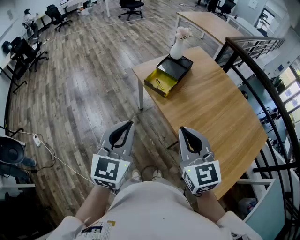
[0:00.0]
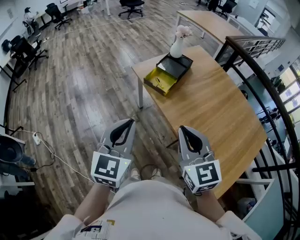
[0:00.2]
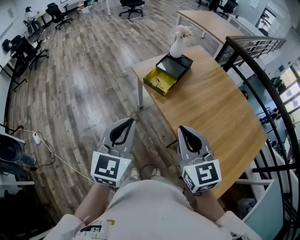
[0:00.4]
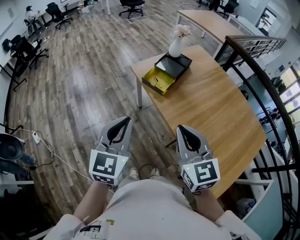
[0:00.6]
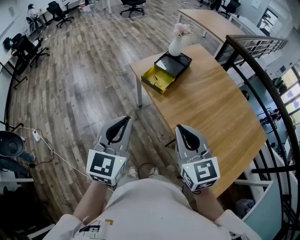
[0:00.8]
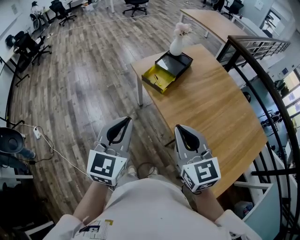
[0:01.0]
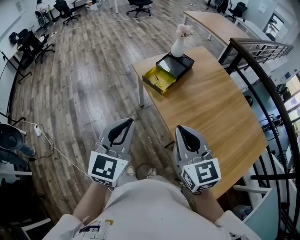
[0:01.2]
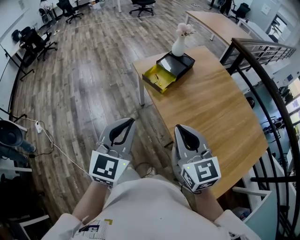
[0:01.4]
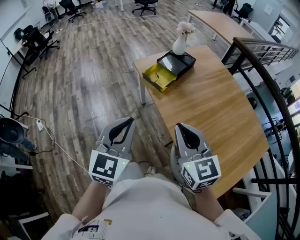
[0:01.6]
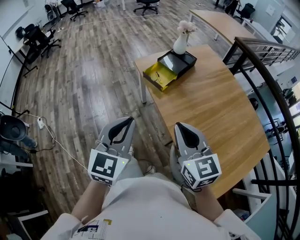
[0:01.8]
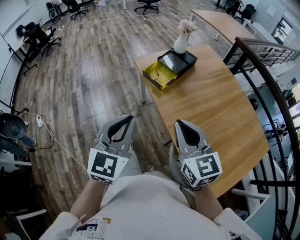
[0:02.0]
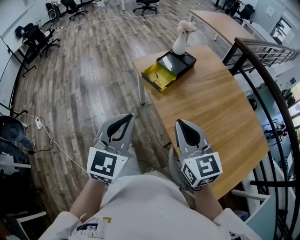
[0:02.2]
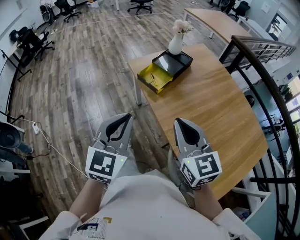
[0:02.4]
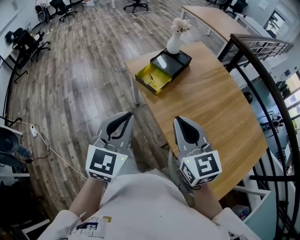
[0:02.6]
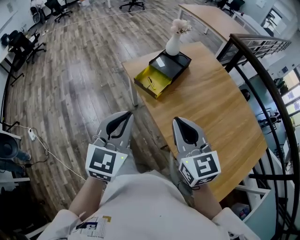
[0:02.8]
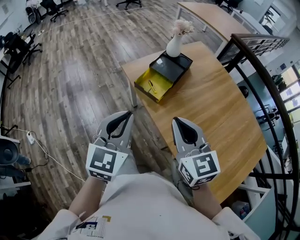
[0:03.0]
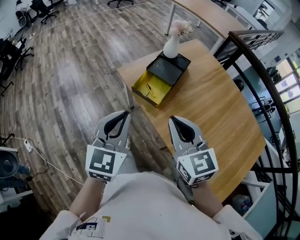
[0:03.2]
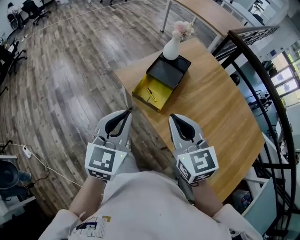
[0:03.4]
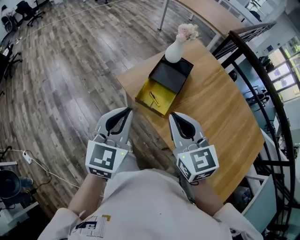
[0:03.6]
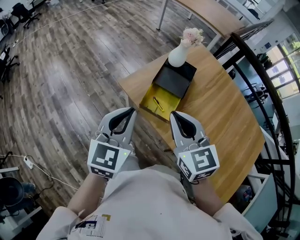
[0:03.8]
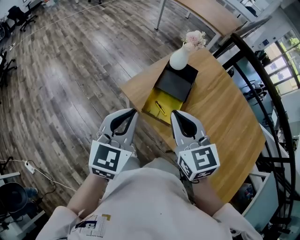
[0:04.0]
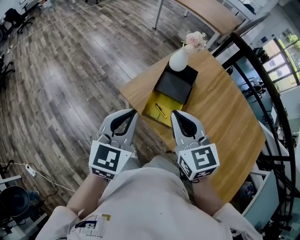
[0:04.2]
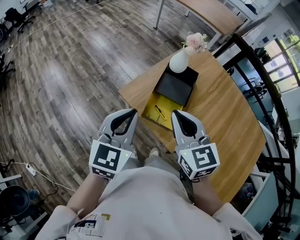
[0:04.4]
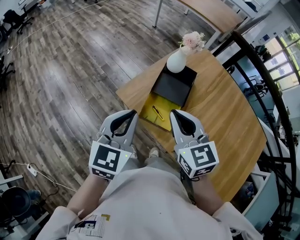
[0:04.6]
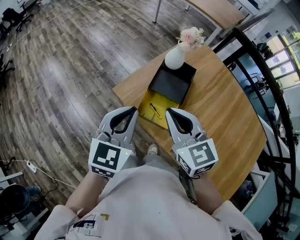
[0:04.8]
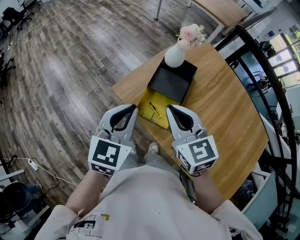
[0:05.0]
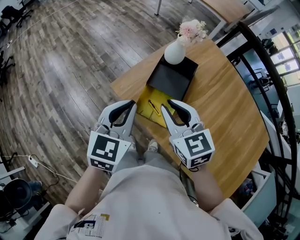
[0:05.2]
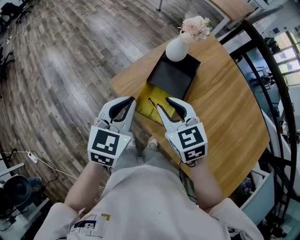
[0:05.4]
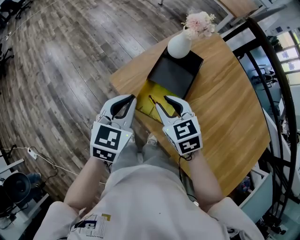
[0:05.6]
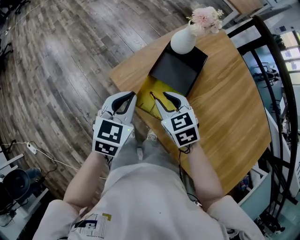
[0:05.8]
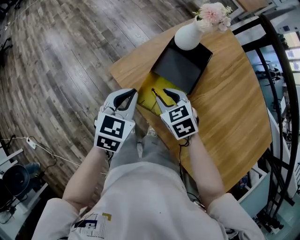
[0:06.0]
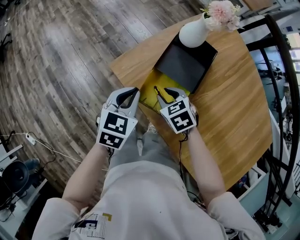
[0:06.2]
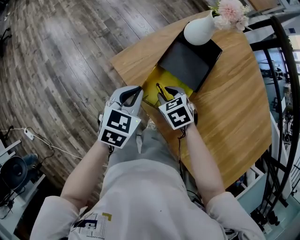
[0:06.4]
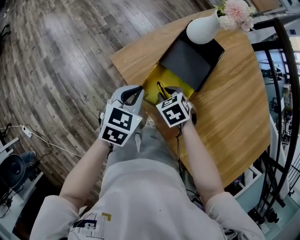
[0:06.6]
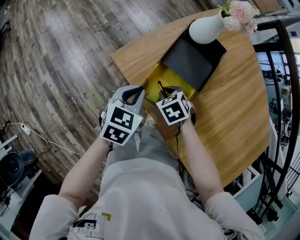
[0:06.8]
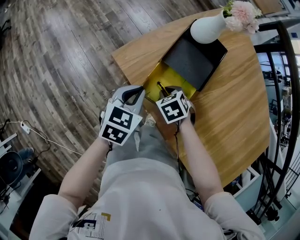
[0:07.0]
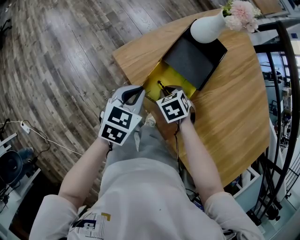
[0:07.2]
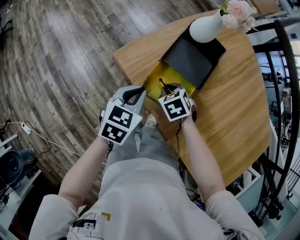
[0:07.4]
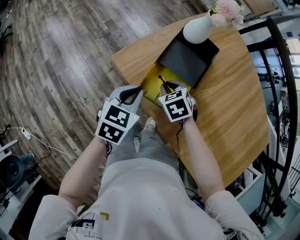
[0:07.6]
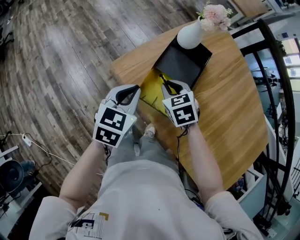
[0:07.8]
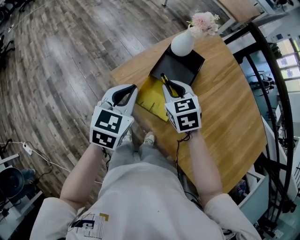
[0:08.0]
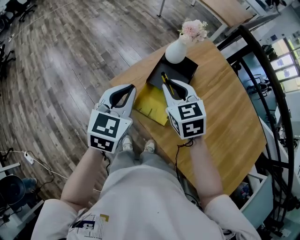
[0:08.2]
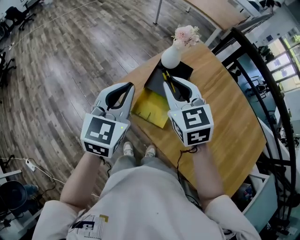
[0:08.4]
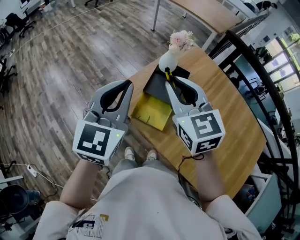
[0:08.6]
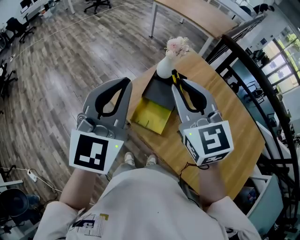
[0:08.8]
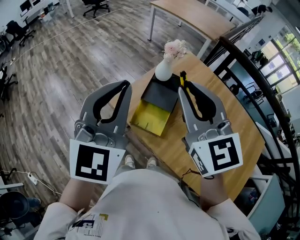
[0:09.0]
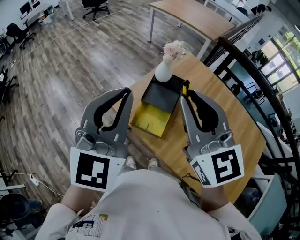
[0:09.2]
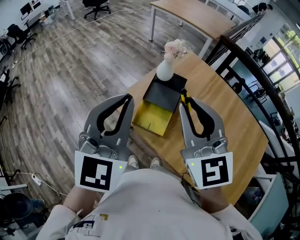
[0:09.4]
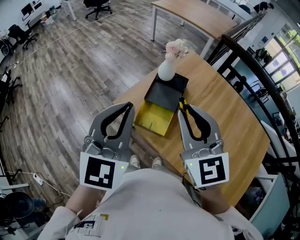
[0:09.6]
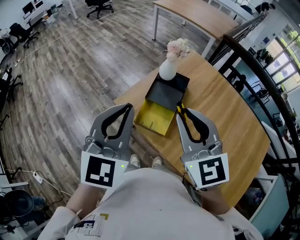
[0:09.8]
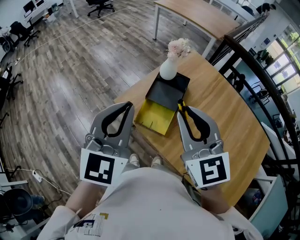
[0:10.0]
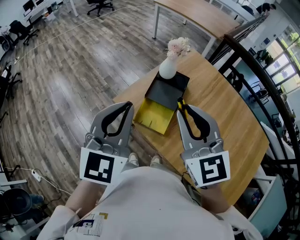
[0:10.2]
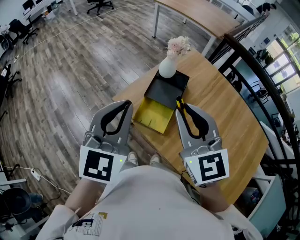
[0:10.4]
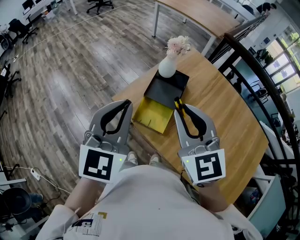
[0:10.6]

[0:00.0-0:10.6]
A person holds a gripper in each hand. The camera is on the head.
0:00.0 to 0:01.6: Both grippers travel together to the right, about 10 cm.
0:01.6 to 0:03.0: The grippers both shift forward by about 15 cm.
0:03.0 to 0:04.6: The grippers both shift forward and to the left by some 30 cm.
0:04.6 to 0:06.0: The left gripper travels downward and forward by roughly 20 cm; the right gripper travels downward by about 25 cm, tips its fingers downward by about 30 degrees, and opens up.
0:06.0 to 0:07.6: The right gripper goes roughly 5 cm downward.
0:07.6 to 0:09.0: The grippers both shift upward by approximately 40 cm. The left gripper tilts its fingers about 40 degrees upward; the right gripper points its fingers about 60 degrees further upward.
0:09.0 to 0:10.6: Both grippers travel together downward, some 5 cm.

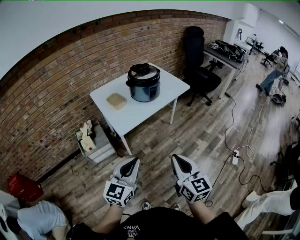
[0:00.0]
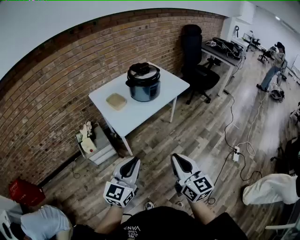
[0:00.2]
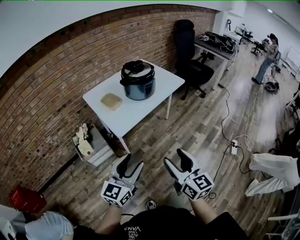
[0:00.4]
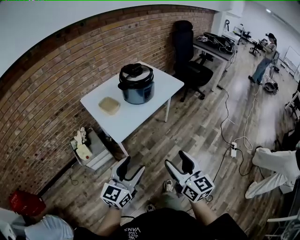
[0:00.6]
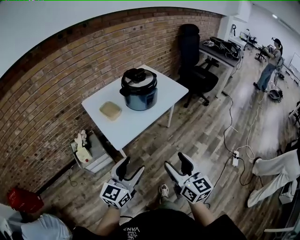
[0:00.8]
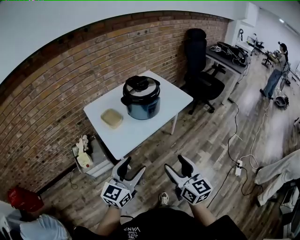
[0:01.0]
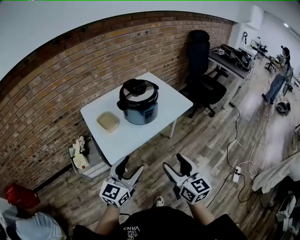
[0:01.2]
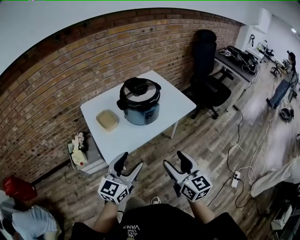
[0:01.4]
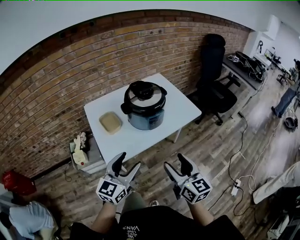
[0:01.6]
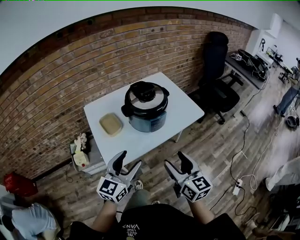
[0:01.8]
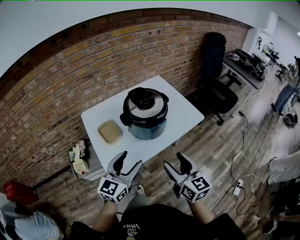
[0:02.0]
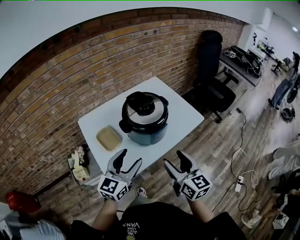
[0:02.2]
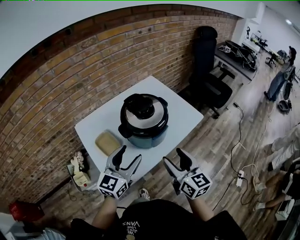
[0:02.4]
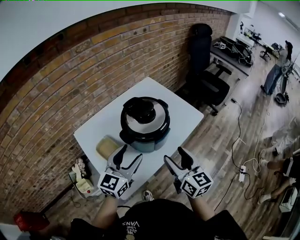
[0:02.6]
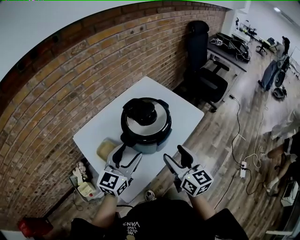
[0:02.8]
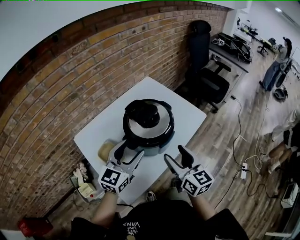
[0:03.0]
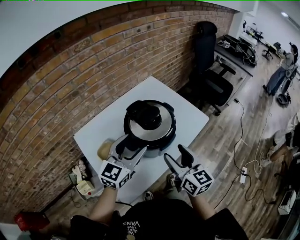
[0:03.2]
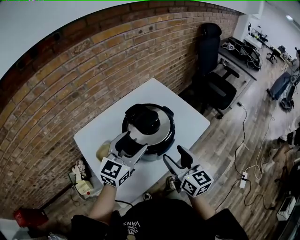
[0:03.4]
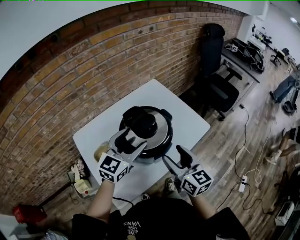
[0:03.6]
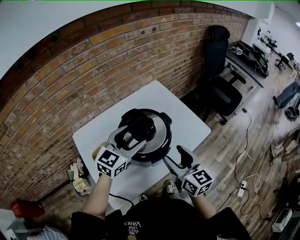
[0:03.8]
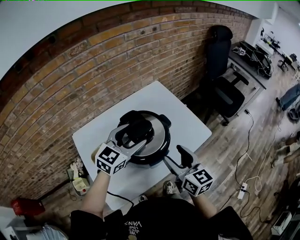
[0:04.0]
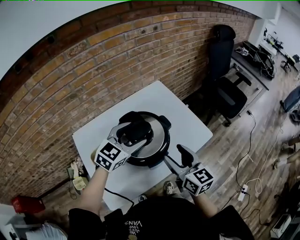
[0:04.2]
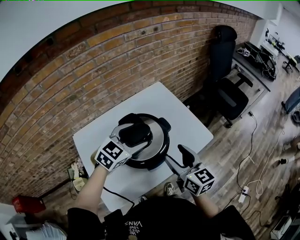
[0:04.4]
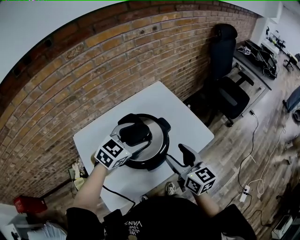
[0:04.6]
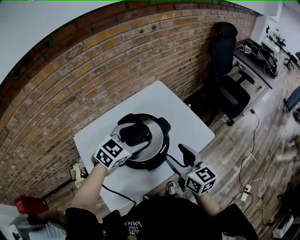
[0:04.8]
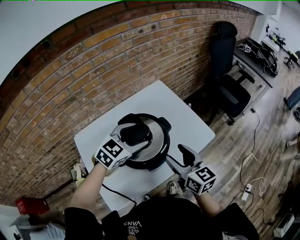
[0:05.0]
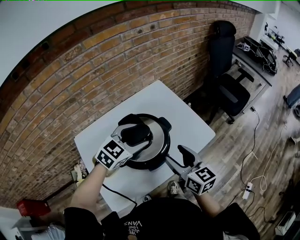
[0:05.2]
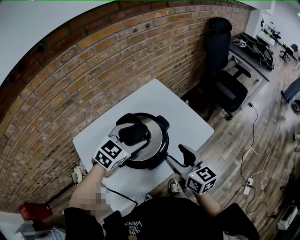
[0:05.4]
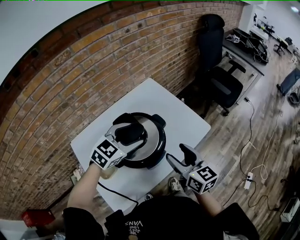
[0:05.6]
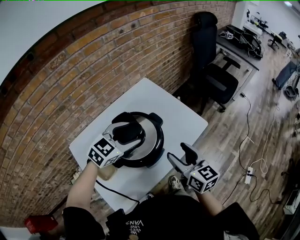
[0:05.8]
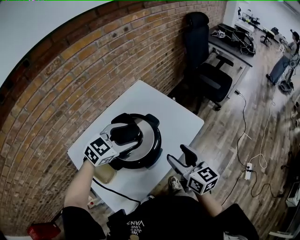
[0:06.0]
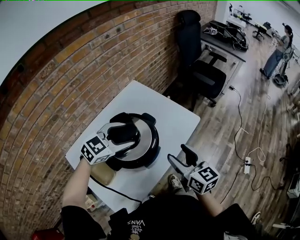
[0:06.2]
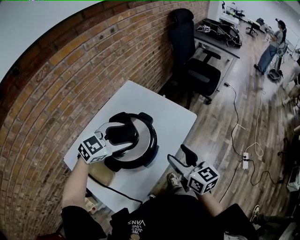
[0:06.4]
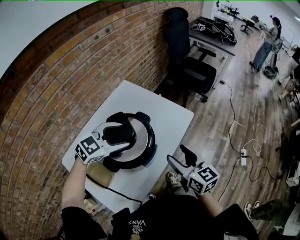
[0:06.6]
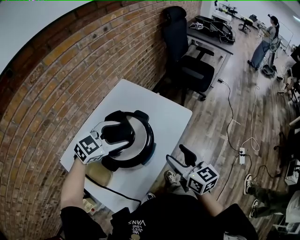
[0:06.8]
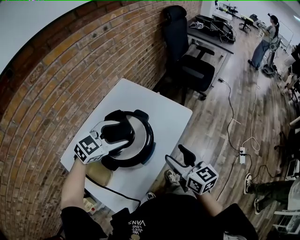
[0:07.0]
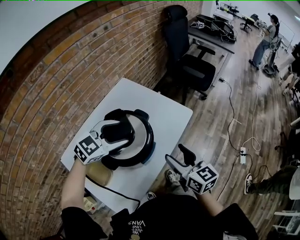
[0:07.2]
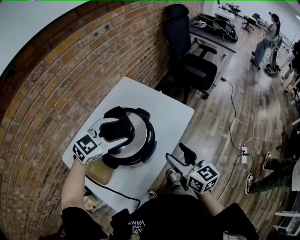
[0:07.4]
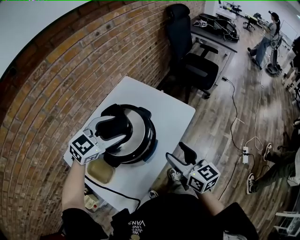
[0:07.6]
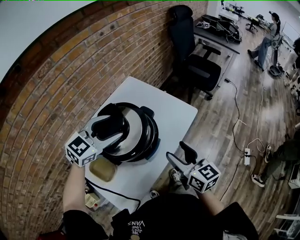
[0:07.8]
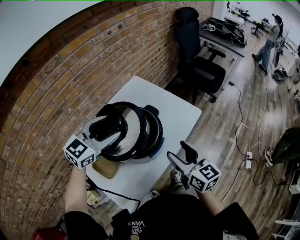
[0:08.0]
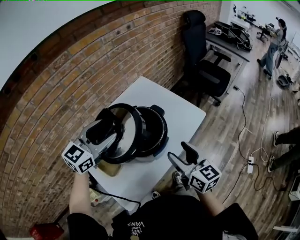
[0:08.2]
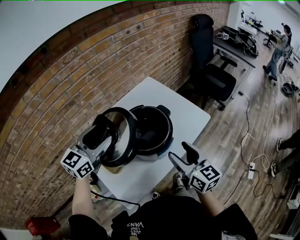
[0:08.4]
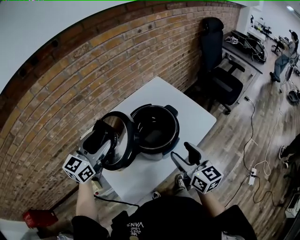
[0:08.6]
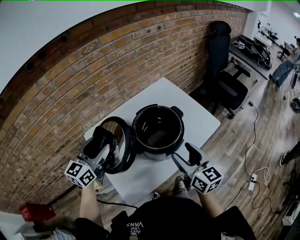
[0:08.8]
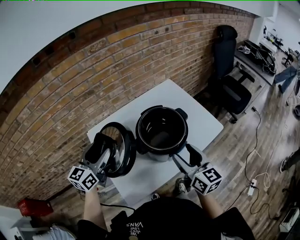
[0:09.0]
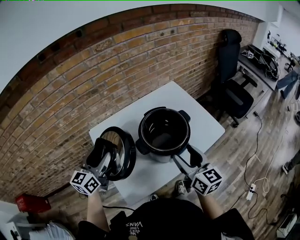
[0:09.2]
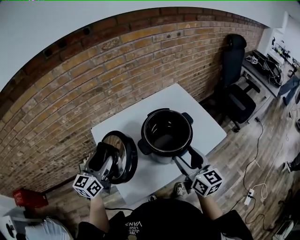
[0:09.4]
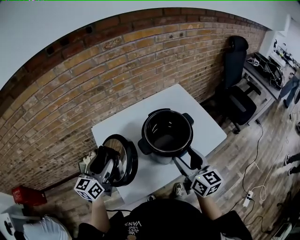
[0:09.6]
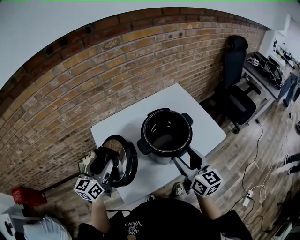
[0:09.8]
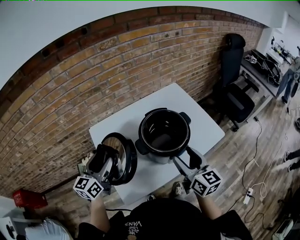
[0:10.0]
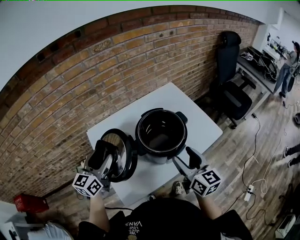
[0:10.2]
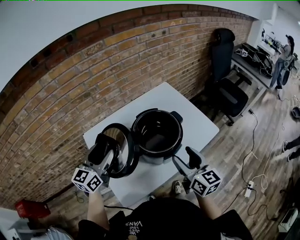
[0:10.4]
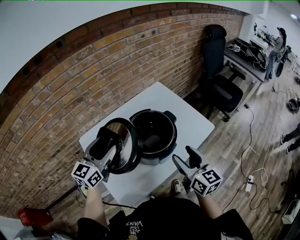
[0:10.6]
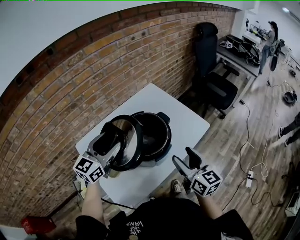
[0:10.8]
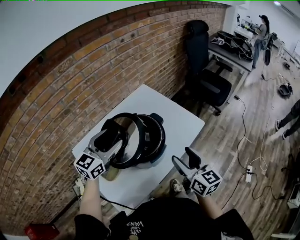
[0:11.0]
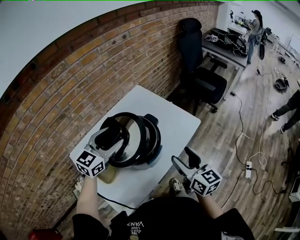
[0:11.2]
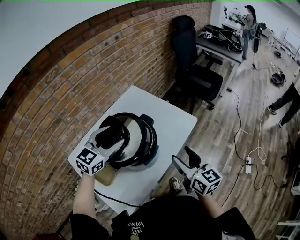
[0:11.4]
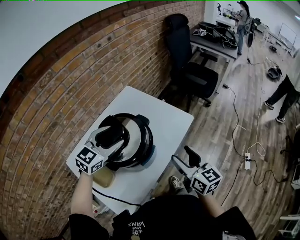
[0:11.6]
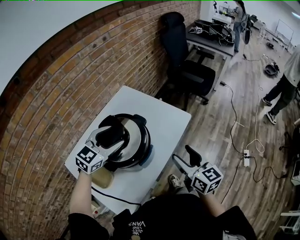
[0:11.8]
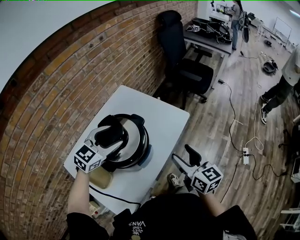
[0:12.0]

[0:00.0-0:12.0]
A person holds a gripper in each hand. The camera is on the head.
0:00.0 to 0:01.6: Both grippers travel together forward, some 30 cm. The left gripper opens its fingers; the right gripper opens its fingers.
0:01.6 to 0:03.0: The left gripper goes approximately 25 cm forward; the right gripper goes some 20 cm forward and to the left.
0:03.0 to 0:04.4: The right gripper heads forward, covering approximately 10 cm. The left gripper heads forward and to the right, covering approximately 15 cm, and swivels roughly 20 degrees.
0:04.4 to 0:06.0: There are only small adjustments of the grippers.
0:06.0 to 0:07.6: The grippers stay close to where they were, moving slightly.
0:07.6 to 0:09.0: The right gripper shifts by roughly 10 cm. Meanwhile the left gripper changes place by some 30 cm, and changes its angle by about 60 degrees.
0:10.4 to 0:12.0: The right gripper shifts by approximately 15 cm, while the left gripper shifts by approximately 25 cm, and changes its angle by about 60 degrees.

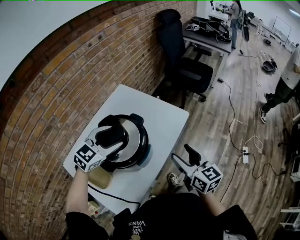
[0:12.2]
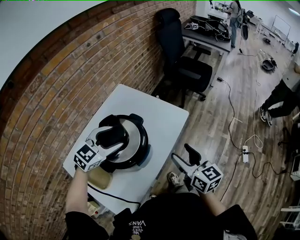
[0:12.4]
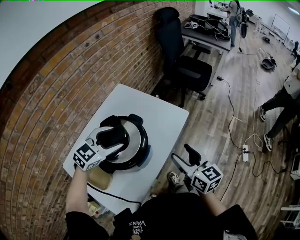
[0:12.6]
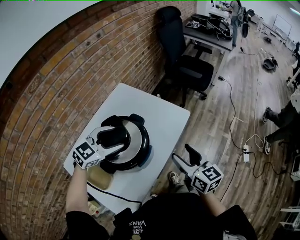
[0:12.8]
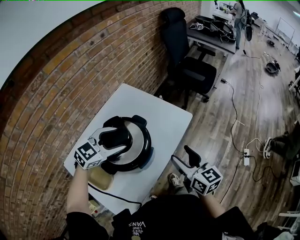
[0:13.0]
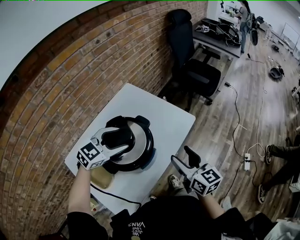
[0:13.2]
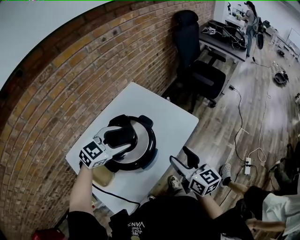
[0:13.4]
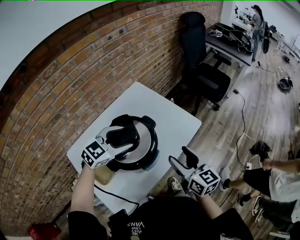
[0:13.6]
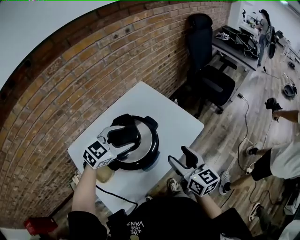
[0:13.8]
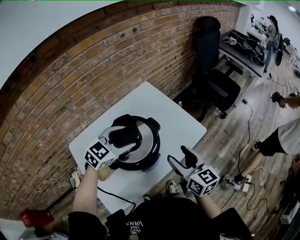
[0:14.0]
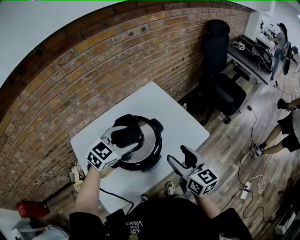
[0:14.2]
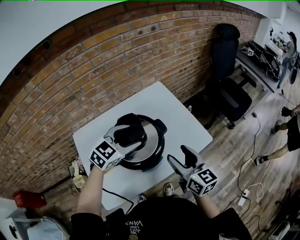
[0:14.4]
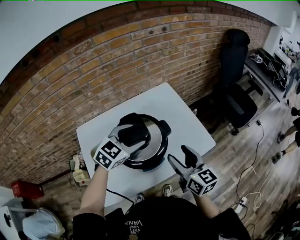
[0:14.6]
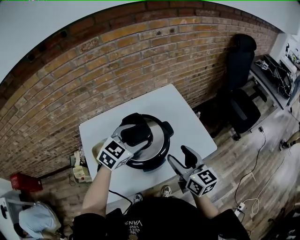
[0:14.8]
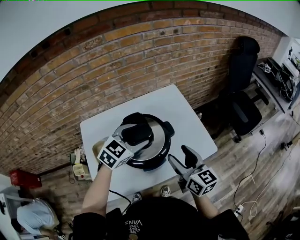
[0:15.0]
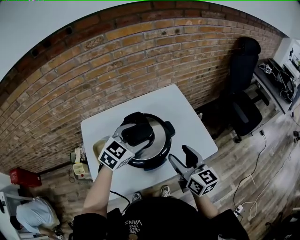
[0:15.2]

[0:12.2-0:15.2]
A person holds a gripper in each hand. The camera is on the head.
0:12.2 to 0:13.8: The right gripper heads to the left, covering approximately 5 cm.
0:13.8 to 0:15.2: The left gripper turns by roughly 30 degrees. Meanwhile the right gripper shifts approximately 5 cm forward.
